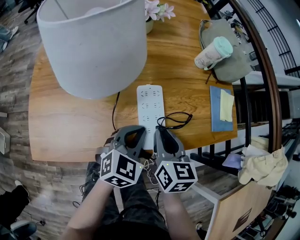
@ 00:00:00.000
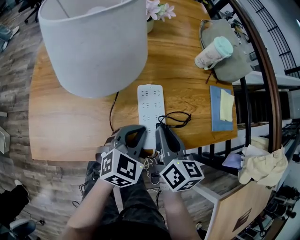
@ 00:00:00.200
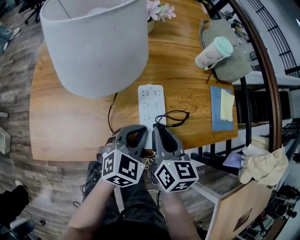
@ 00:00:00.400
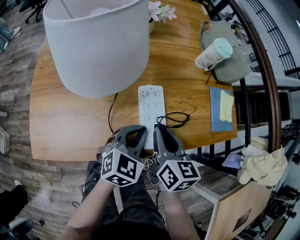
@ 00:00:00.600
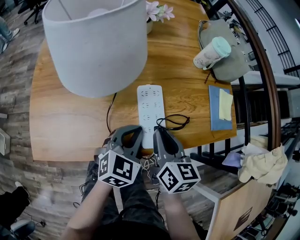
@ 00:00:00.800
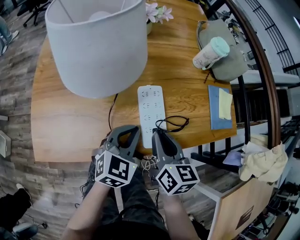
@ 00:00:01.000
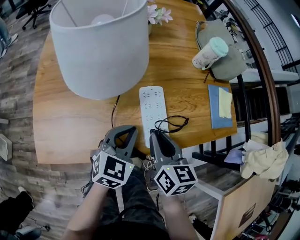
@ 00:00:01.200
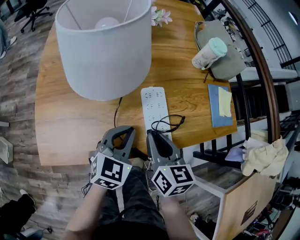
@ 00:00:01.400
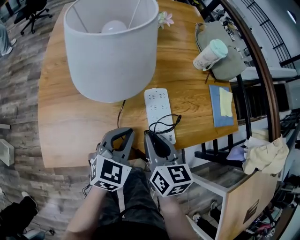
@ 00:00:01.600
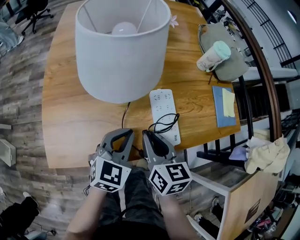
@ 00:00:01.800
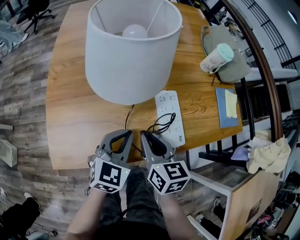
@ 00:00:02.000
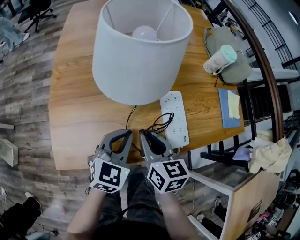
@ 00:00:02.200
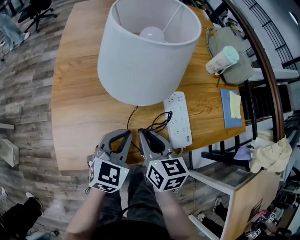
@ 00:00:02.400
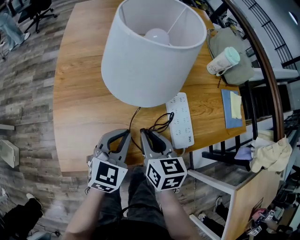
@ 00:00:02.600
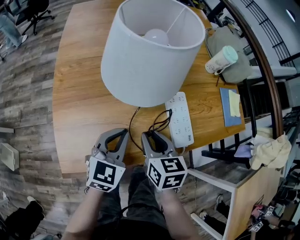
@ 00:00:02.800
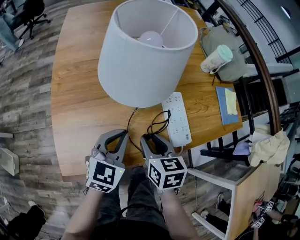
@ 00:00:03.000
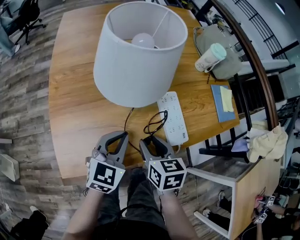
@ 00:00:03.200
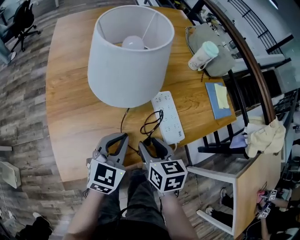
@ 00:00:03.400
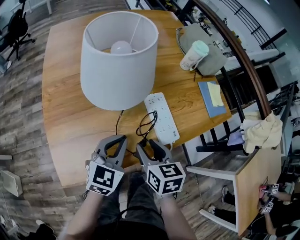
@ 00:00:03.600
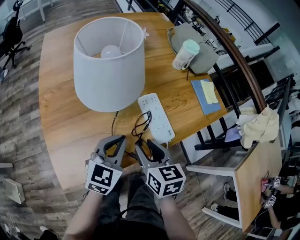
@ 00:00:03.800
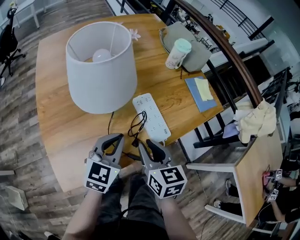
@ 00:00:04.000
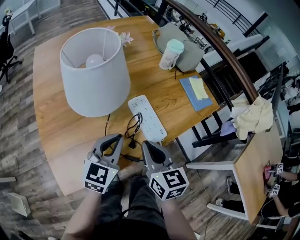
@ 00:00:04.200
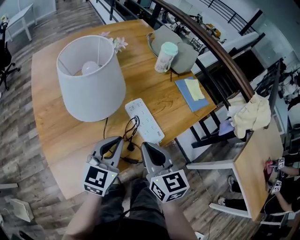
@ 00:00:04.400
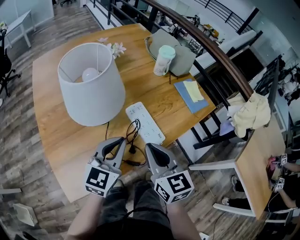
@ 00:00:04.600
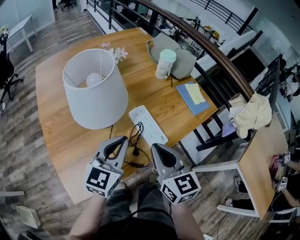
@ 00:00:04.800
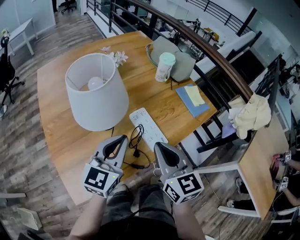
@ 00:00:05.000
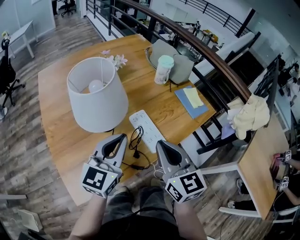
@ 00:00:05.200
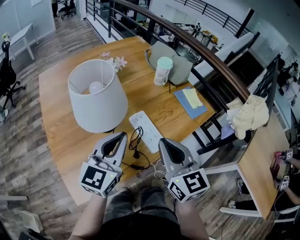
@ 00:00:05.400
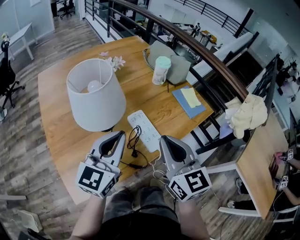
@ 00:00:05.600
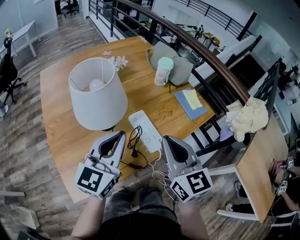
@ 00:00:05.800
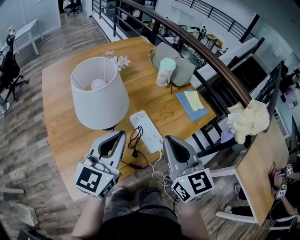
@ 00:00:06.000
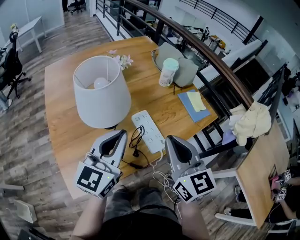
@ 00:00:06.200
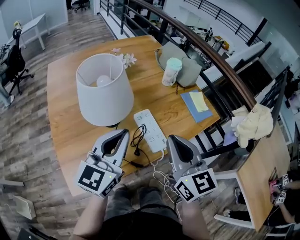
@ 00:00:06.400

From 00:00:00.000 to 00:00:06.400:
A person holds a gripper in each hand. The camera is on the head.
From 00:00:00.000 to 00:00:01.600: The grippers both shift to the left by about 5 cm.
From 00:00:01.600 to 00:00:03.200: The two grippers go about 10 cm to the left. The right gripper opens up.
From 00:00:03.200 to 00:00:04.800: The two grippers go roughly 15 cm upward and to the right. The right gripper changes its angle by some 30 degrees, and closes. Meanwhile the left gripper rotates approximately 20 degrees.
From 00:00:04.800 to 00:00:06.400: Both grippers travel together upward, roughly 10 cm.

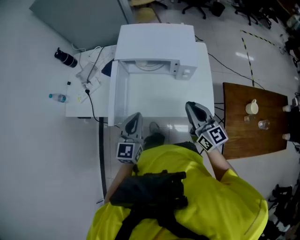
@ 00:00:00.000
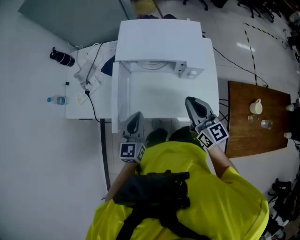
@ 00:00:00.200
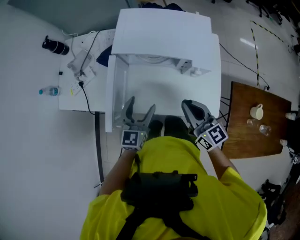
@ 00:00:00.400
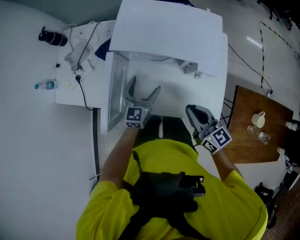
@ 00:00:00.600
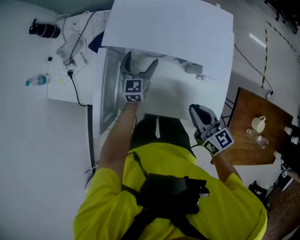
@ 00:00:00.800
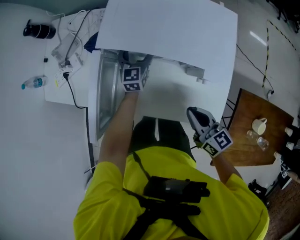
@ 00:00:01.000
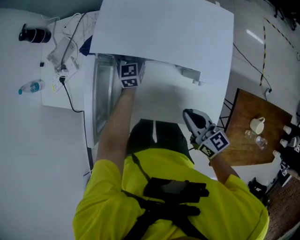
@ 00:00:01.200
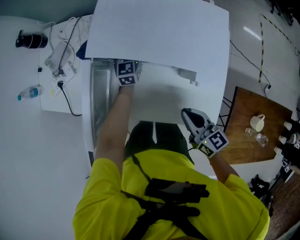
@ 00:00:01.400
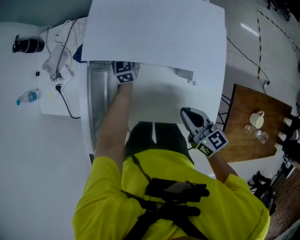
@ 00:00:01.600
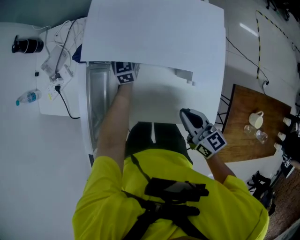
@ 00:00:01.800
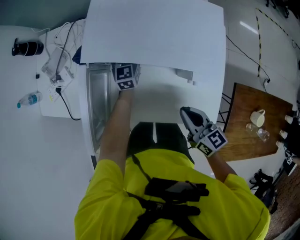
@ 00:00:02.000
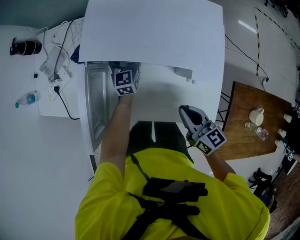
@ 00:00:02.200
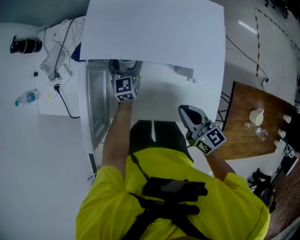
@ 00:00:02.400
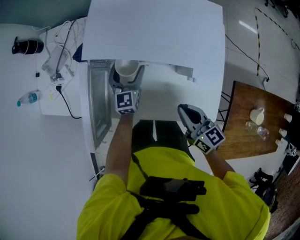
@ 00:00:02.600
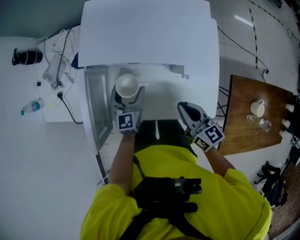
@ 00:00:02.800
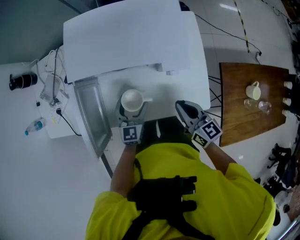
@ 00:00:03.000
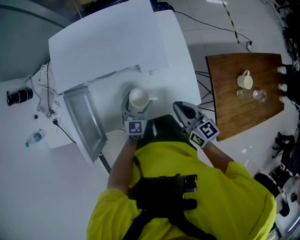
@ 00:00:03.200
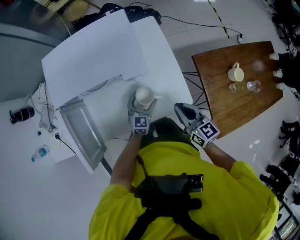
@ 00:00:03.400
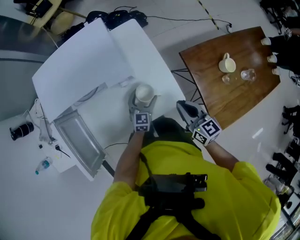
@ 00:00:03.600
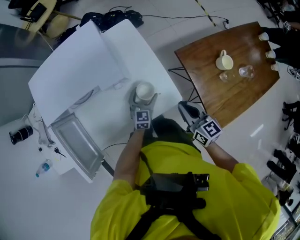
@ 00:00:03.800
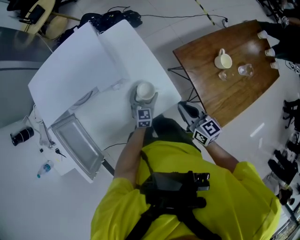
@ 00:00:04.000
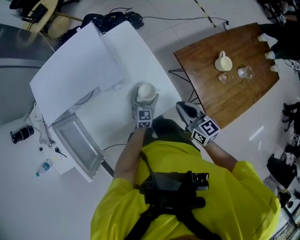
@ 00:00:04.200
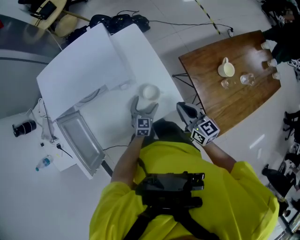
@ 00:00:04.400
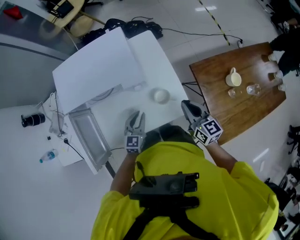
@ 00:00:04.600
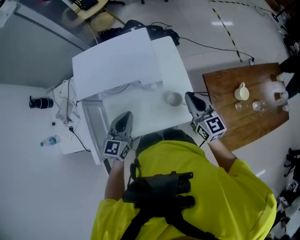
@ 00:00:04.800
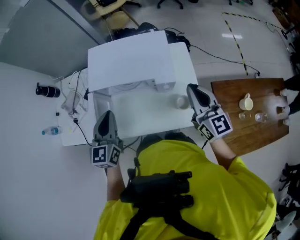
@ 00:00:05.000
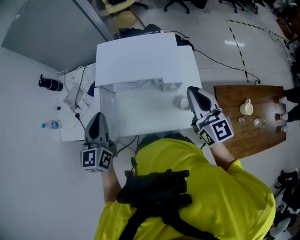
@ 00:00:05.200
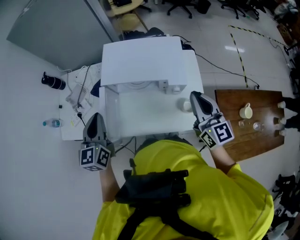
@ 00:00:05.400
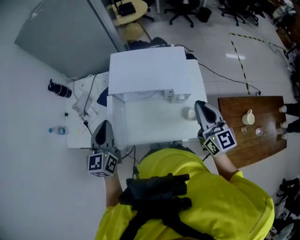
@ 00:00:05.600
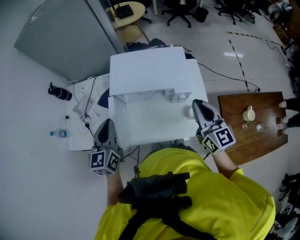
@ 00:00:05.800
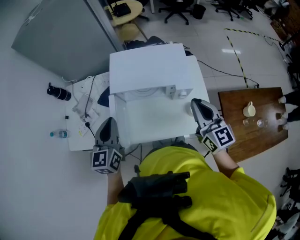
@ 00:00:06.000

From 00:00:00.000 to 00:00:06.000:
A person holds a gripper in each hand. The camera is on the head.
From 00:00:00.000 to 00:00:01.600: The left gripper moves forward and downward, some 50 cm, and opens its fingers. Meanwhile the right gripper shifts some 20 cm downward and forward, and rotates about 30 degrees.
From 00:00:01.600 to 00:00:03.000: The left gripper travels backward by some 25 cm.
From 00:00:03.000 to 00:00:04.400: The left gripper moves some 25 cm, and rotates about 30 degrees; the right gripper shifts by roughly 20 cm, and changes its angle by some 20 degrees.
From 00:00:04.400 to 00:00:06.000: The right gripper is displaced upward and to the left by some 30 cm, and rotates some 30 degrees, while the left gripper heads to the left and upward, covering some 60 cm, swivels about 40 degrees, and closes its fingers.

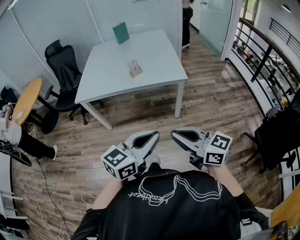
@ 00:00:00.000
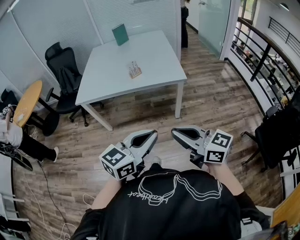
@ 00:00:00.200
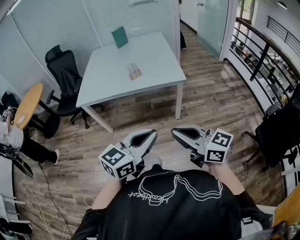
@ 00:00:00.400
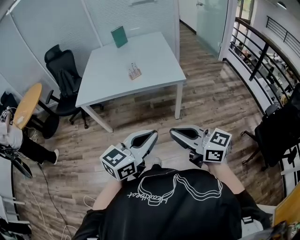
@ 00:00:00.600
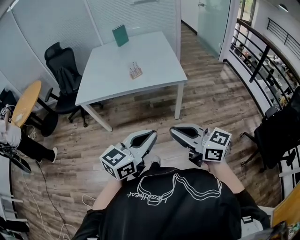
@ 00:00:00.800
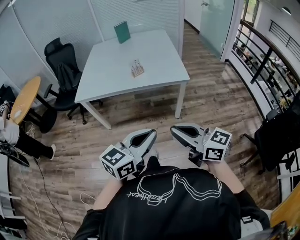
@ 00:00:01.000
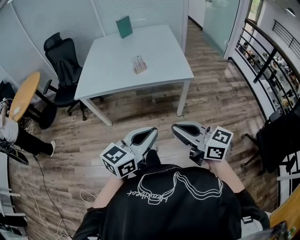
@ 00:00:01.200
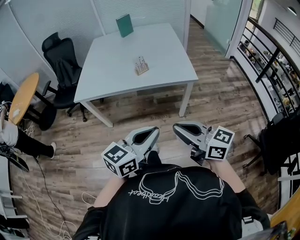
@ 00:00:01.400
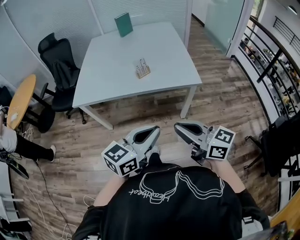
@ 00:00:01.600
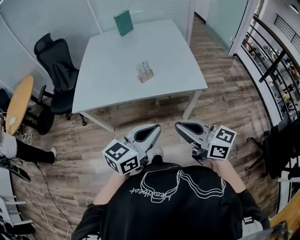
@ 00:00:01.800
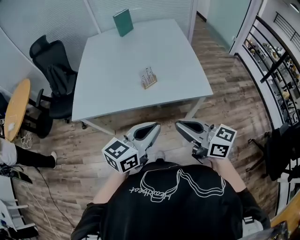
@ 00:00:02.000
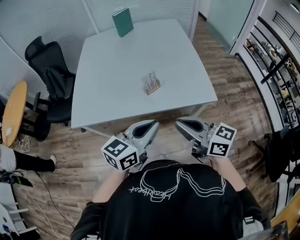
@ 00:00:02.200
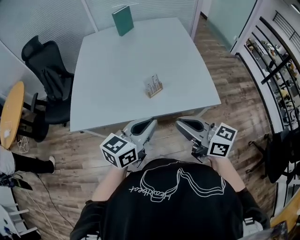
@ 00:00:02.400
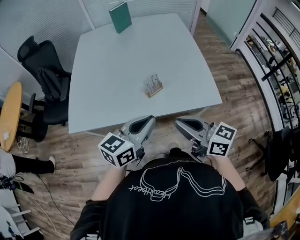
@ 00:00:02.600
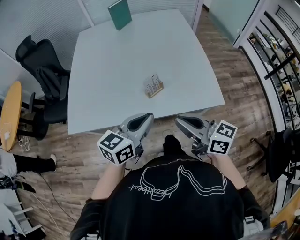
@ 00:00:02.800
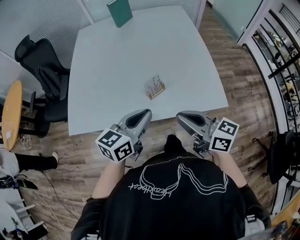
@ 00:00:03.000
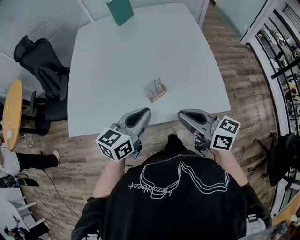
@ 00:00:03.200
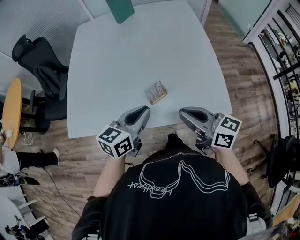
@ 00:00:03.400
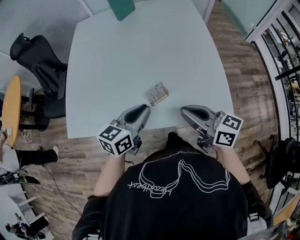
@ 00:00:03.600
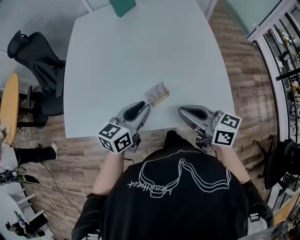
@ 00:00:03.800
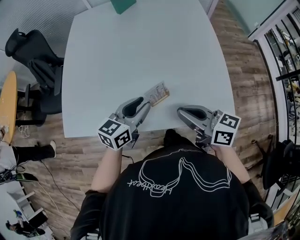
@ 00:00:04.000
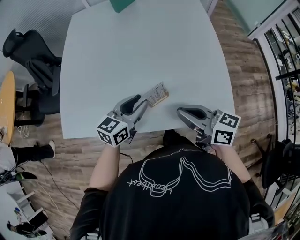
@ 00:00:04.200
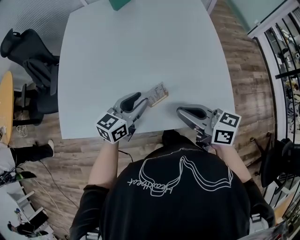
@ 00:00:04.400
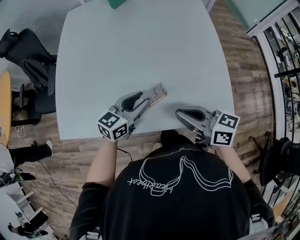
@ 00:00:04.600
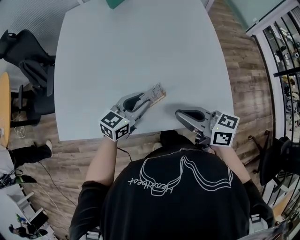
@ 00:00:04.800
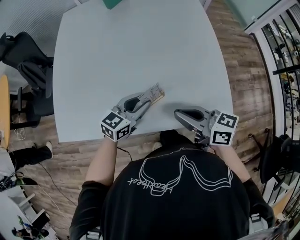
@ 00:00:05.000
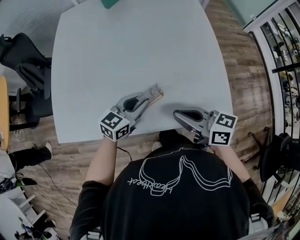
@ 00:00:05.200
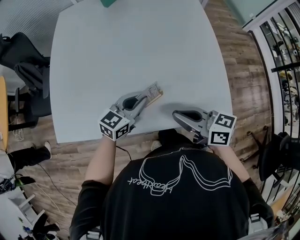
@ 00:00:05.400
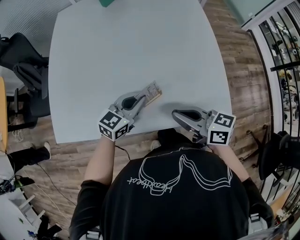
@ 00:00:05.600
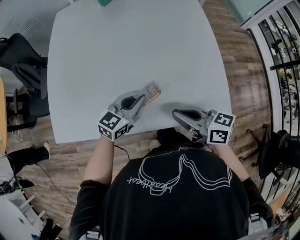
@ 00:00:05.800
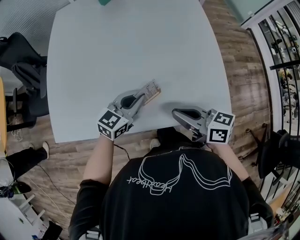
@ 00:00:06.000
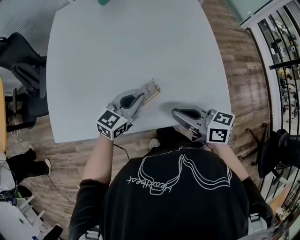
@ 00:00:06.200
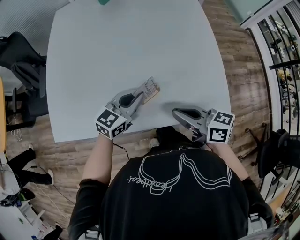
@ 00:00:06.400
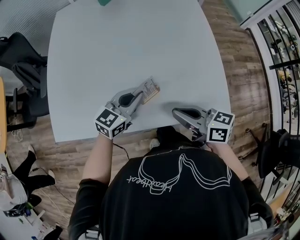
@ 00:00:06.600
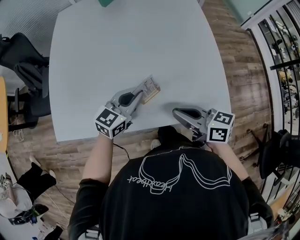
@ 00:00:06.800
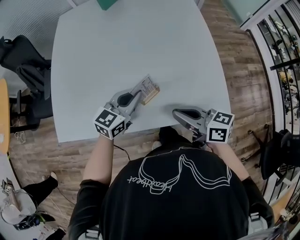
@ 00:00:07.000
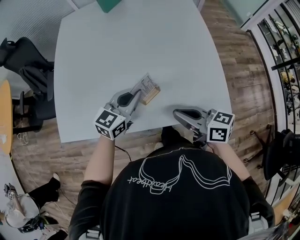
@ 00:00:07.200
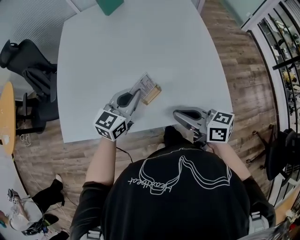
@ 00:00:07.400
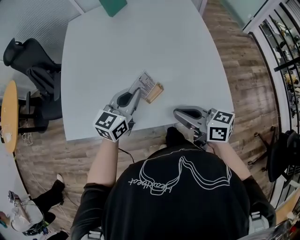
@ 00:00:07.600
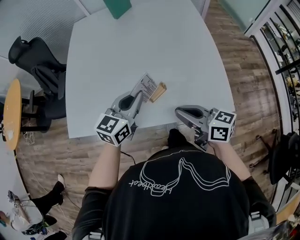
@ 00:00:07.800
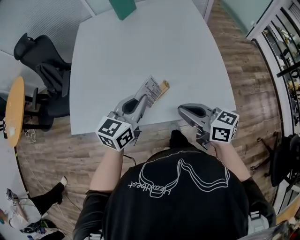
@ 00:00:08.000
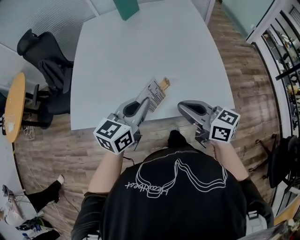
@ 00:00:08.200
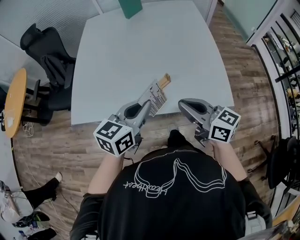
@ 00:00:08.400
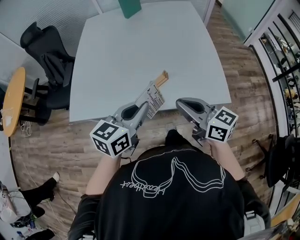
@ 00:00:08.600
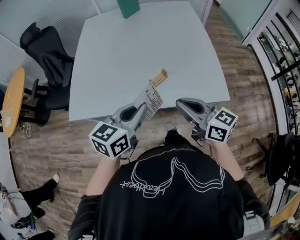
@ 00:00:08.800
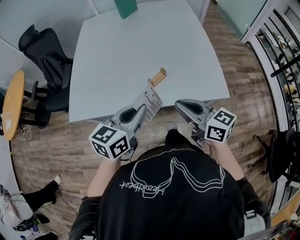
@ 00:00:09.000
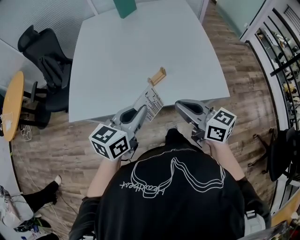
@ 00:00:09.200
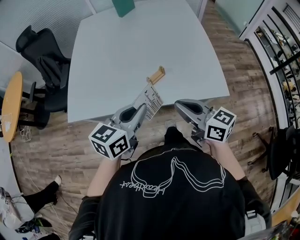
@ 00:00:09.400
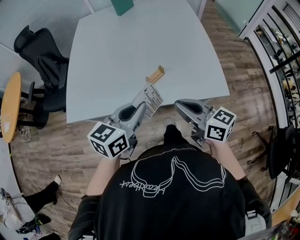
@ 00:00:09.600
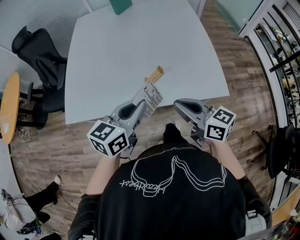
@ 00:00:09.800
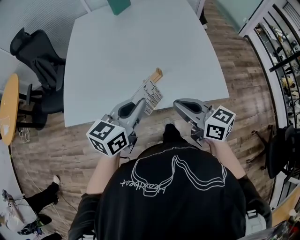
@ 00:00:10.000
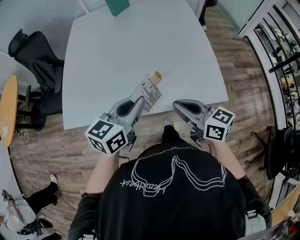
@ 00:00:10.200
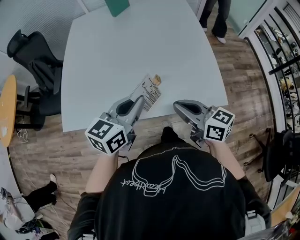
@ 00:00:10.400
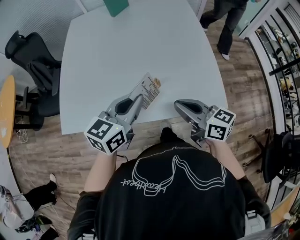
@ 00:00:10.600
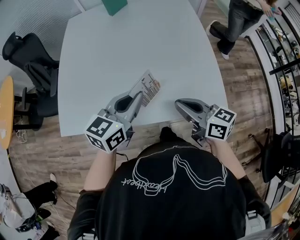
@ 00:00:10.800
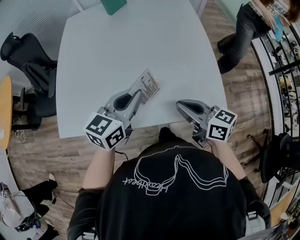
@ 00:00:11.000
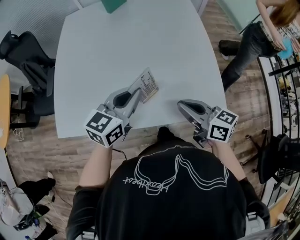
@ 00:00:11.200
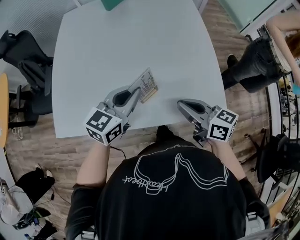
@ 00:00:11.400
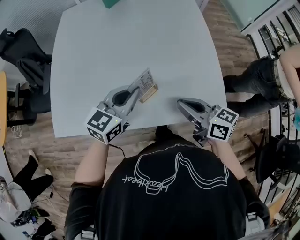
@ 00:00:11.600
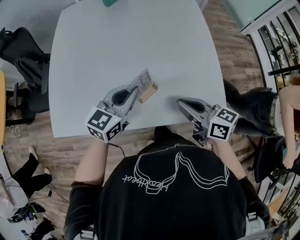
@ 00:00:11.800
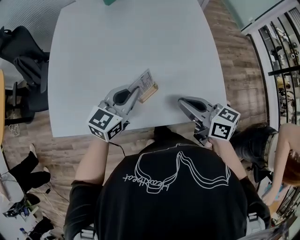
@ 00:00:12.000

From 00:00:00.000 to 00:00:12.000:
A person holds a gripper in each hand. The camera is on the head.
From 00:00:00.000 to 00:00:01.600: The two grippers go approximately 15 cm forward.
From 00:00:01.600 to 00:00:03.000: The two grippers go roughly 35 cm forward.
From 00:00:03.000 to 00:00:04.400: Both grippers travel together forward and downward, approximately 15 cm. The left gripper opens.
From 00:00:04.400 to 00:00:06.000: The left gripper closes.
From 00:00:06.000 to 00:00:07.600: The left gripper heads upward, covering approximately 10 cm.
From 00:00:07.600 to 00:00:09.000: The right gripper heads backward and upward, covering approximately 10 cm. The left gripper travels backward by approximately 20 cm.
From 00:00:09.000 to 00:00:10.400: The left gripper is displaced forward by some 10 cm. The right gripper ends up about 5 cm from where it was.
From 00:00:10.400 to 00:00:12.000: The right gripper shifts approximately 10 cm forward. Meanwhile the left gripper shifts about 15 cm forward and downward.
